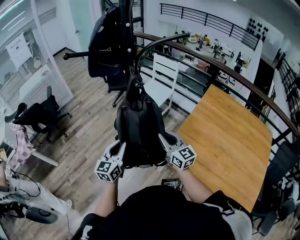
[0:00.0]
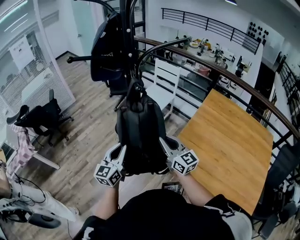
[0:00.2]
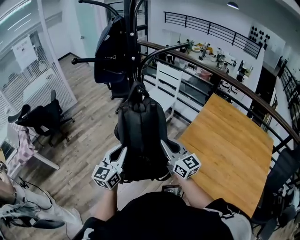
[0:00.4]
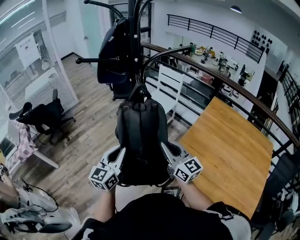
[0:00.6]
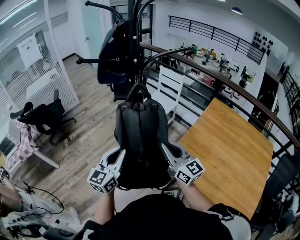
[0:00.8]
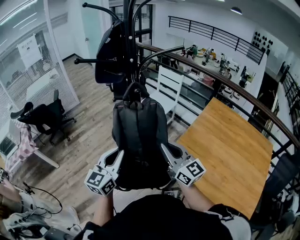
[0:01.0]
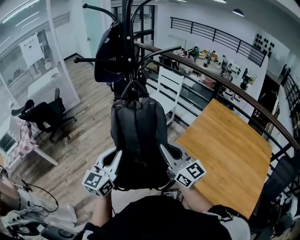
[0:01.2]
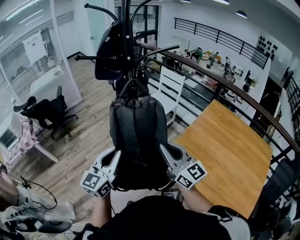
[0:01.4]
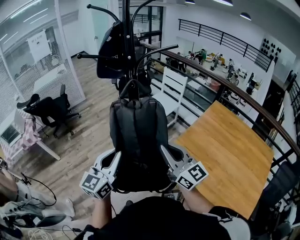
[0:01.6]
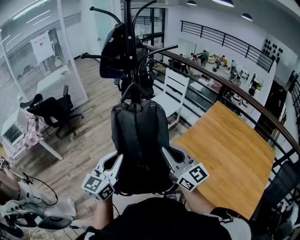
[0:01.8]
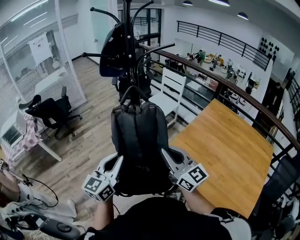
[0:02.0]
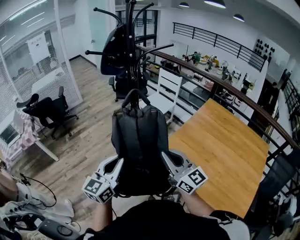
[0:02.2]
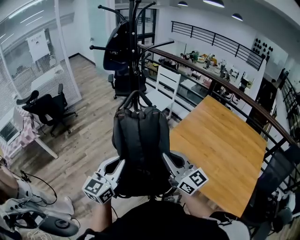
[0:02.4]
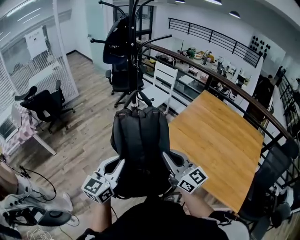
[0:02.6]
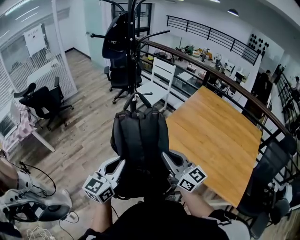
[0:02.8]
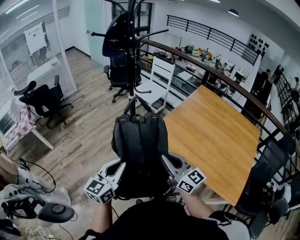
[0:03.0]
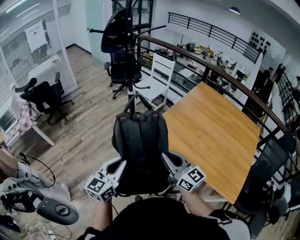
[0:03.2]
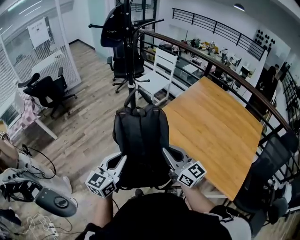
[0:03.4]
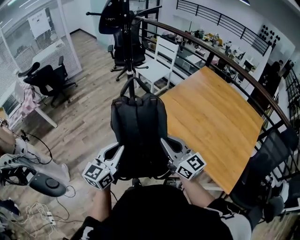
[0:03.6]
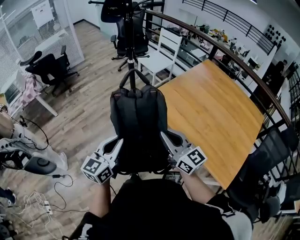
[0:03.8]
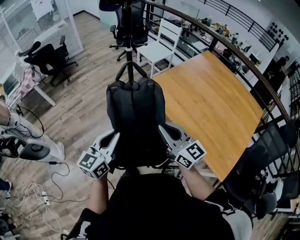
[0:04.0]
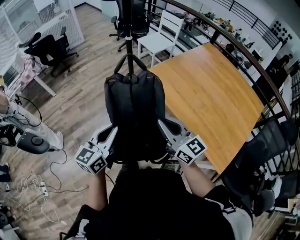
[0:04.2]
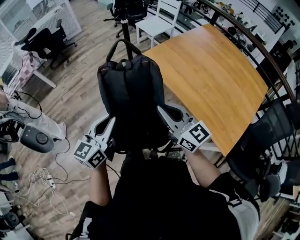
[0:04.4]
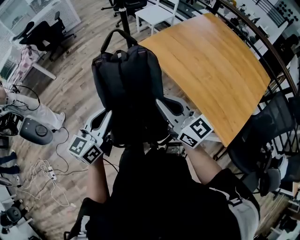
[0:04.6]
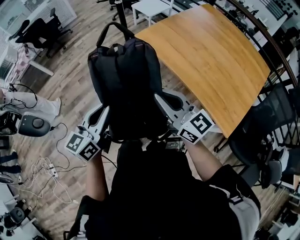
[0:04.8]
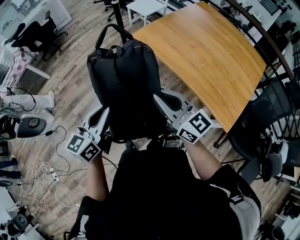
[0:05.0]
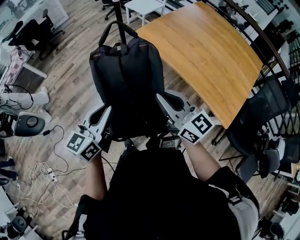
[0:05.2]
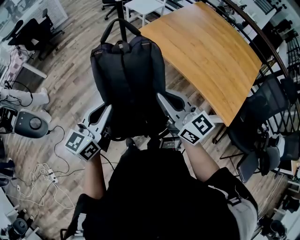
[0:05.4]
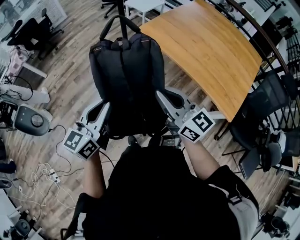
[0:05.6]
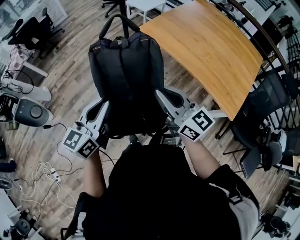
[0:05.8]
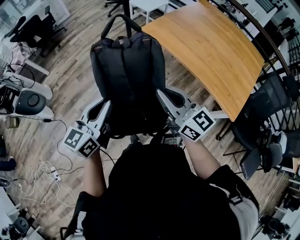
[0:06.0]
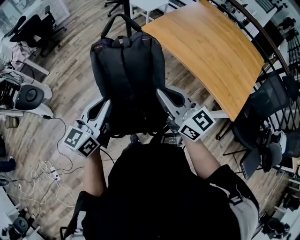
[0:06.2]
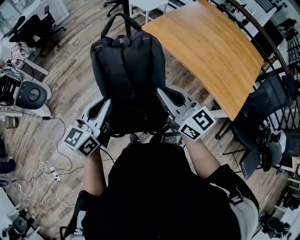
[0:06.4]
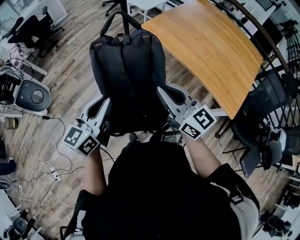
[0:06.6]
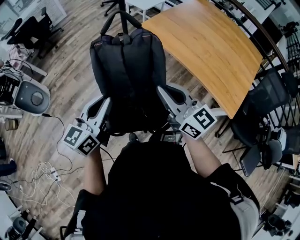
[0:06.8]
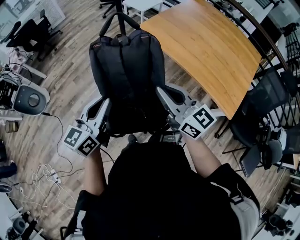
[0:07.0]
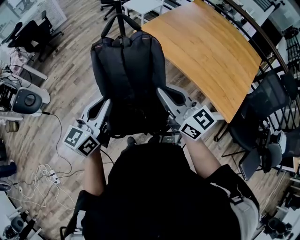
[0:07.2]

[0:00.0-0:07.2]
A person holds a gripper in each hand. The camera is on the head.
0:00.0 to 0:01.4: The grippers both shift upward and backward by approximately 15 cm.
0:01.4 to 0:02.8: Both grippers move backward, roughly 20 cm.
0:02.8 to 0:04.4: Both grippers move backward, some 20 cm.
0:04.4 to 0:05.8: The left gripper shifts roughly 10 cm to the left and backward, while the right gripper goes approximately 10 cm backward and to the left.
0:05.8 to 0:07.2: The grippers make only small movements.

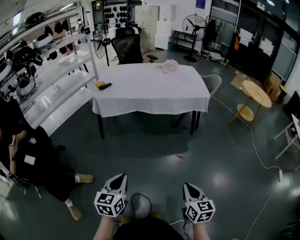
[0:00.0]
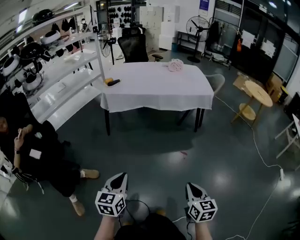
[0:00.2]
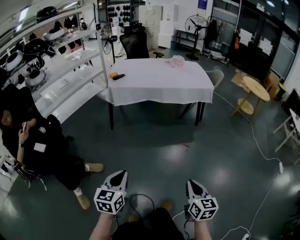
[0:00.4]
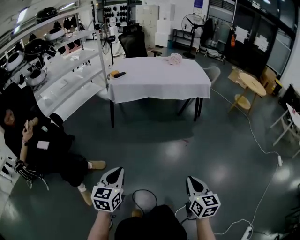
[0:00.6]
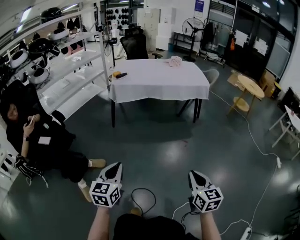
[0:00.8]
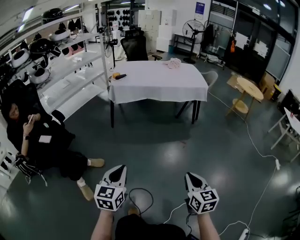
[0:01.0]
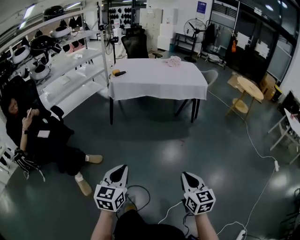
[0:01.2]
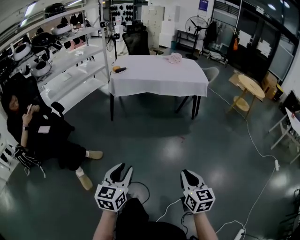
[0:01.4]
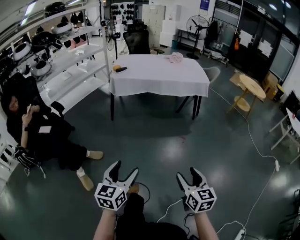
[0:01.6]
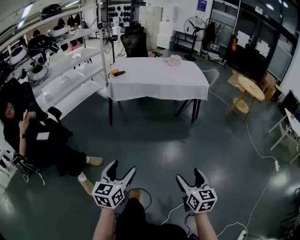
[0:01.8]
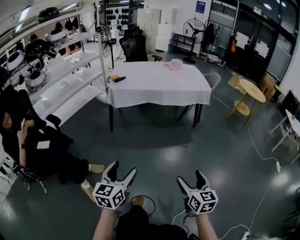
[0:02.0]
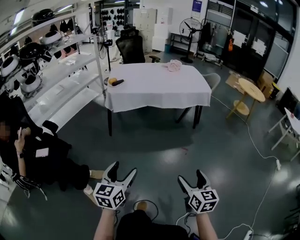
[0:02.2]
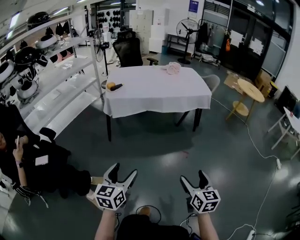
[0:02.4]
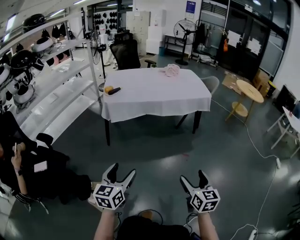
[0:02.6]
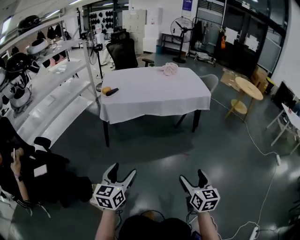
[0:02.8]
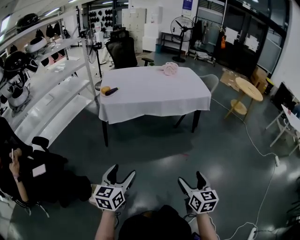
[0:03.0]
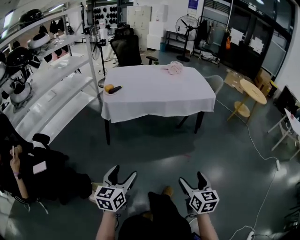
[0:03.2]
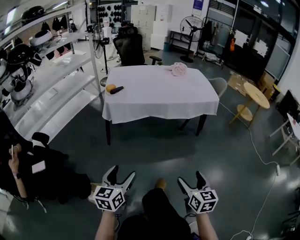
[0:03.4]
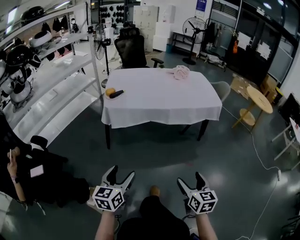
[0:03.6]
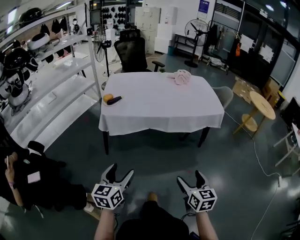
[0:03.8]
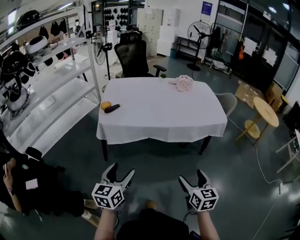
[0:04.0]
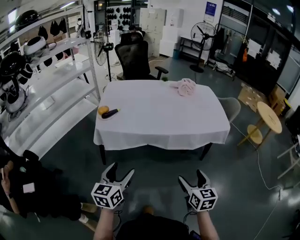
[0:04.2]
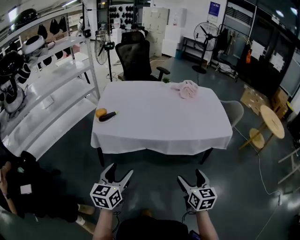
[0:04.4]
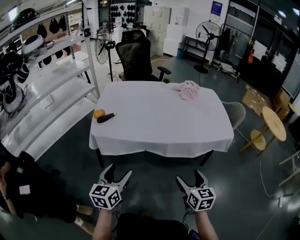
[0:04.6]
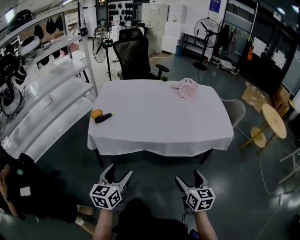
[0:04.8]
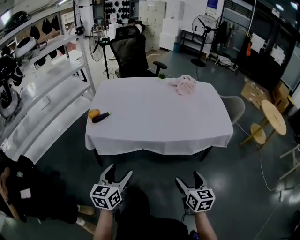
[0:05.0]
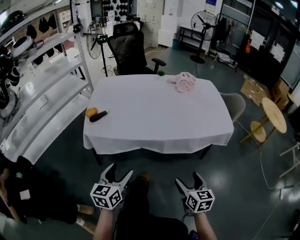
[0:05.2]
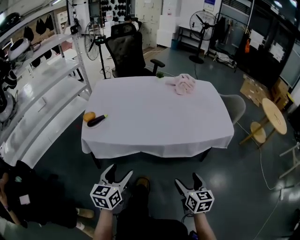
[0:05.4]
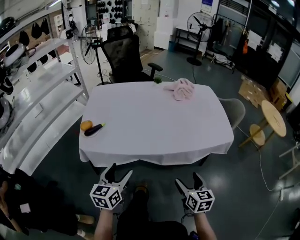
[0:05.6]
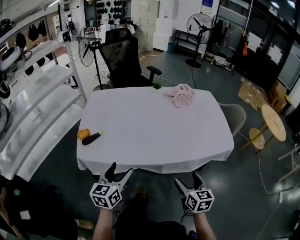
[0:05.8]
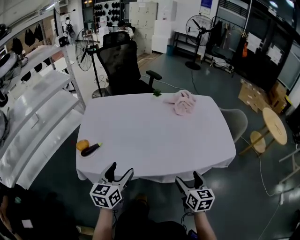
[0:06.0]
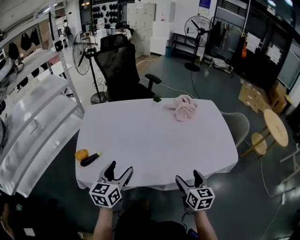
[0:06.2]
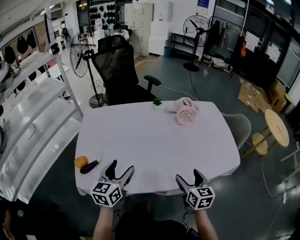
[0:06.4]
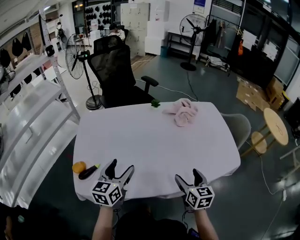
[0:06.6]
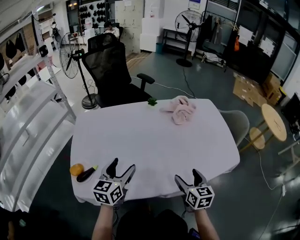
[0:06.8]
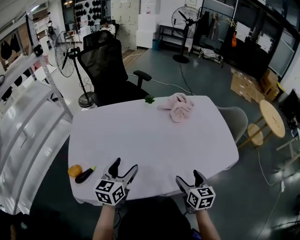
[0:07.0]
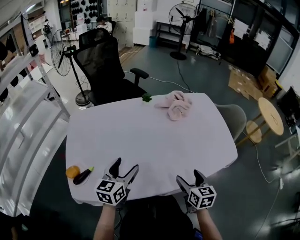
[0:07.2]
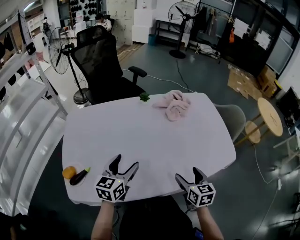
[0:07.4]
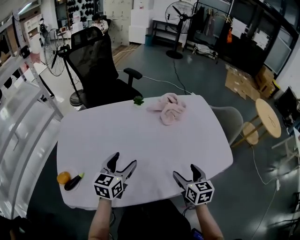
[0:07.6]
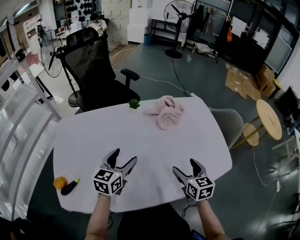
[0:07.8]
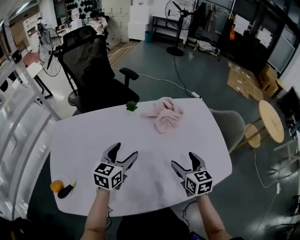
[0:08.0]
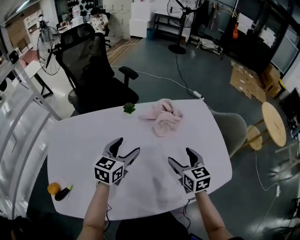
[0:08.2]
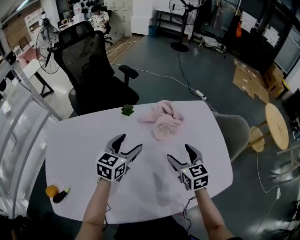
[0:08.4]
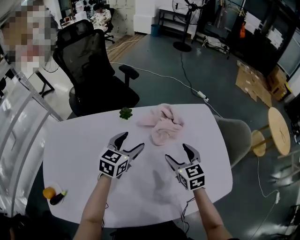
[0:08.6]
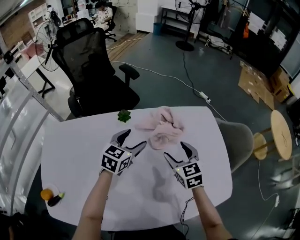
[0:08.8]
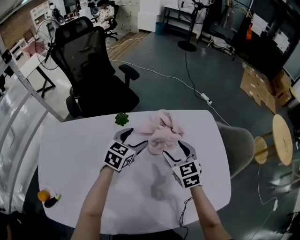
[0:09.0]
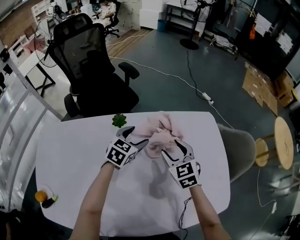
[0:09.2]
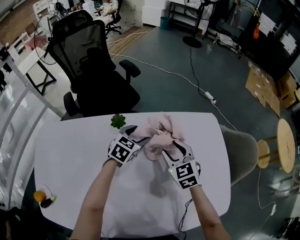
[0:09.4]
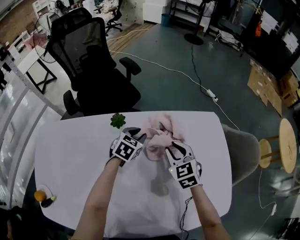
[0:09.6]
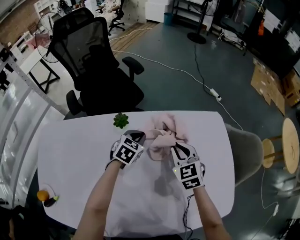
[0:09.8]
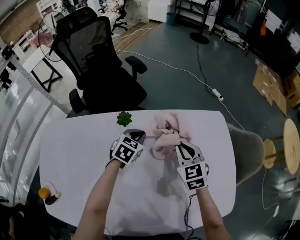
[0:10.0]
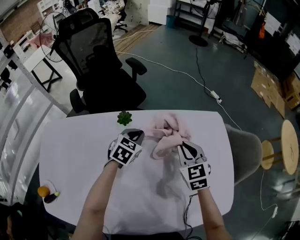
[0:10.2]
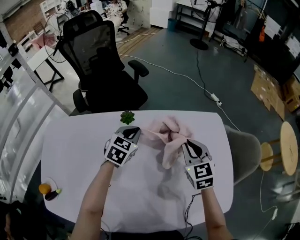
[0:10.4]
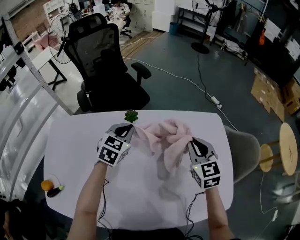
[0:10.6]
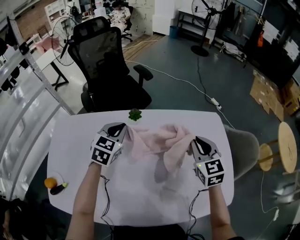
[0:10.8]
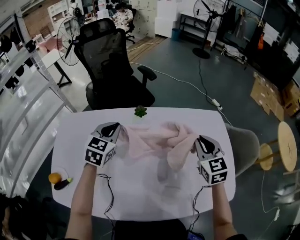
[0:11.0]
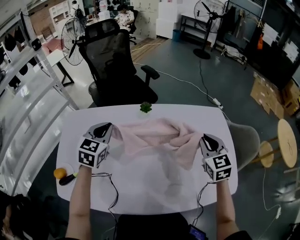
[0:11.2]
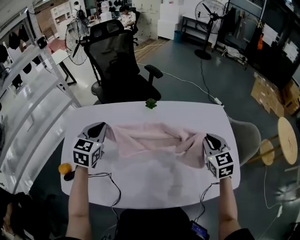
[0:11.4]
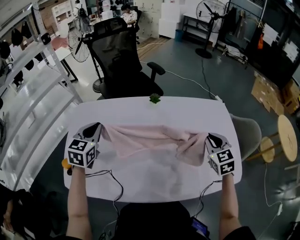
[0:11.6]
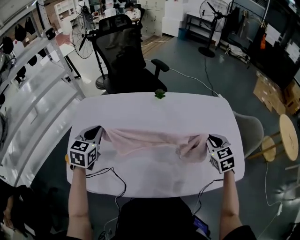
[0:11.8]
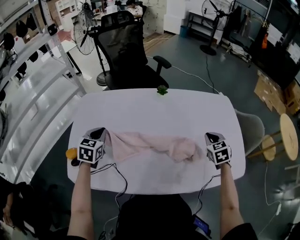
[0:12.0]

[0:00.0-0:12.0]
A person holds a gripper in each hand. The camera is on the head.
0:00.0 to 0:01.6: The left gripper travels backward by some 25 cm, and opens up, while the right gripper heads backward and to the left, covering approximately 25 cm, and opens.
0:01.6 to 0:03.0: Both grippers travel together forward and to the left, about 30 cm.
0:03.0 to 0:04.4: Both grippers move forward, roughly 40 cm.
0:04.4 to 0:06.0: Both grippers move forward, about 25 cm.
0:06.0 to 0:07.6: The two grippers go about 20 cm forward.
0:07.6 to 0:09.0: The right gripper moves forward, some 30 cm, and swivels roughly 30 degrees; the left gripper travels forward and to the right by approximately 35 cm.
0:09.0 to 0:10.4: The right gripper moves approximately 5 cm, and closes. Meanwhile the left gripper reaches approximately 10 cm downward, then returns, and closes its fingers.
0:10.4 to 0:12.0: The left gripper is displaced to the left and backward by approximately 40 cm, and turns by roughly 20 degrees. Meanwhile the right gripper heads backward, covering approximately 15 cm.

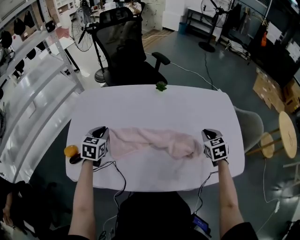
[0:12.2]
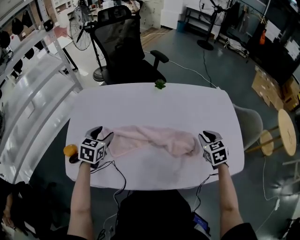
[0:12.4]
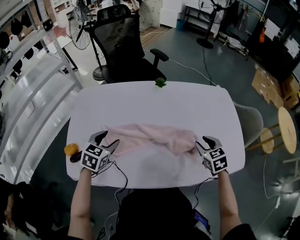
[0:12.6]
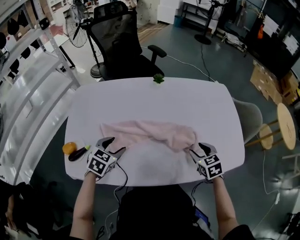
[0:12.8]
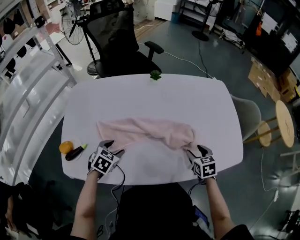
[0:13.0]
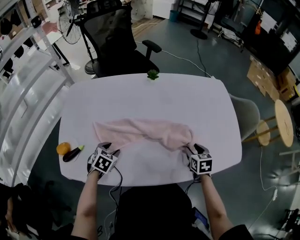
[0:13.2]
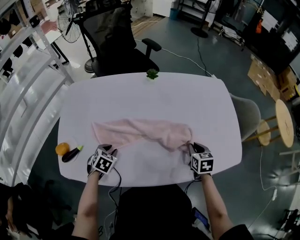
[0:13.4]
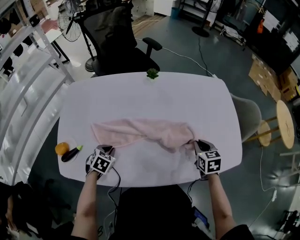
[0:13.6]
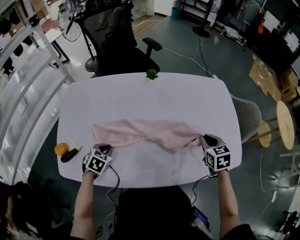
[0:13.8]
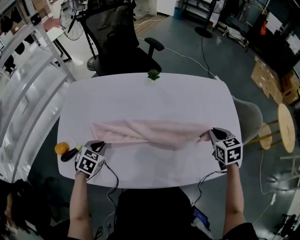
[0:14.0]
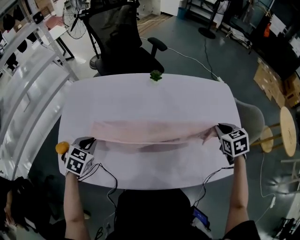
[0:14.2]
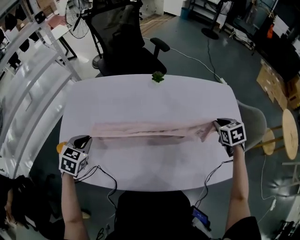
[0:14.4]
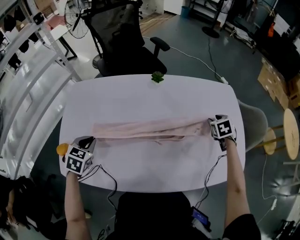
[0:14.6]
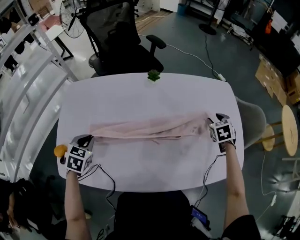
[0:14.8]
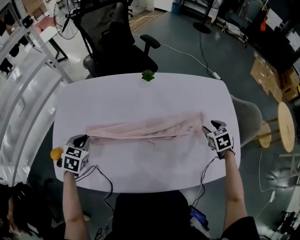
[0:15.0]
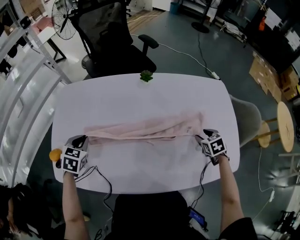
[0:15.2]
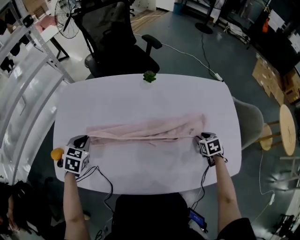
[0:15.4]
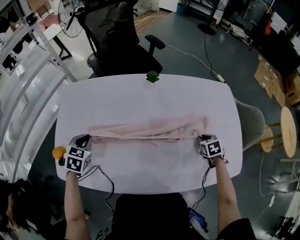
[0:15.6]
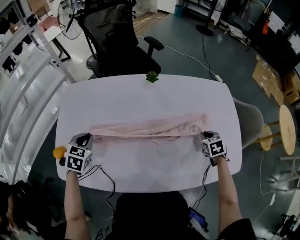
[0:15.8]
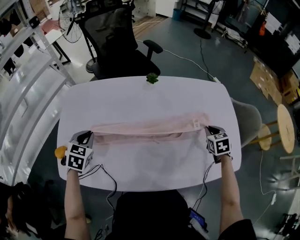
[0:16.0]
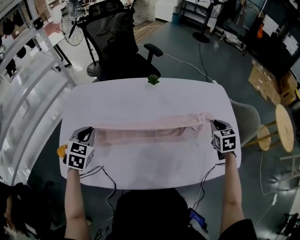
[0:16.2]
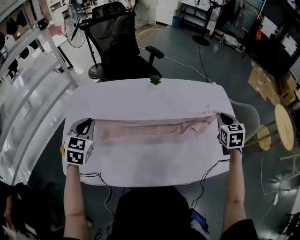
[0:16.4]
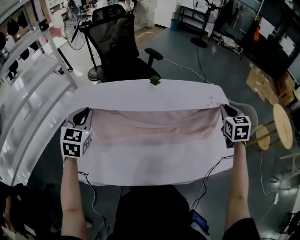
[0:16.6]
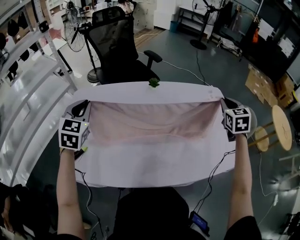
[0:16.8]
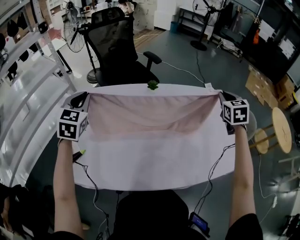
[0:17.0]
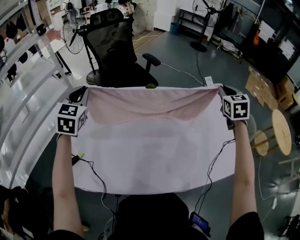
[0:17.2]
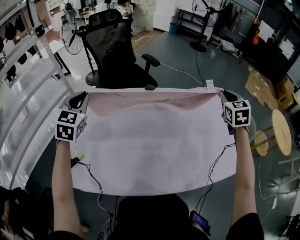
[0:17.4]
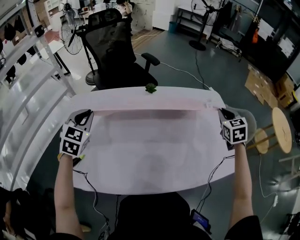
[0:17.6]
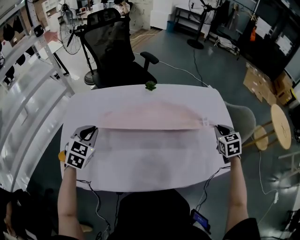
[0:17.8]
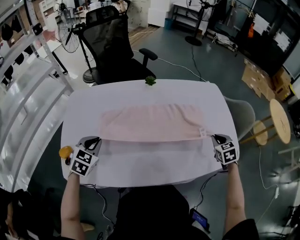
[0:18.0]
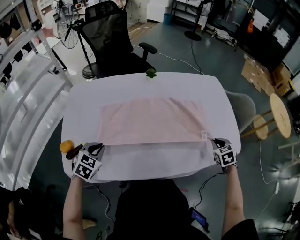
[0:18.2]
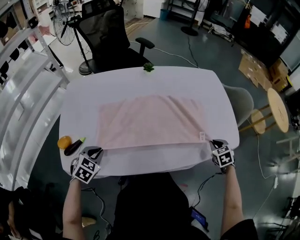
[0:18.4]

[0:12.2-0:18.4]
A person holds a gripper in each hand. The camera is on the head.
0:12.2 to 0:13.8: The right gripper heads backward, covering some 5 cm, and opens and closes again. The left gripper heads downward, backward and to the right, covering about 15 cm, rotates some 30 degrees, and opens, then closes once more.
0:13.8 to 0:15.4: The left gripper is displaced upward, to the left and forward by about 10 cm; the right gripper travels downward and forward by about 15 cm.
0:15.4 to 0:16.8: Both grippers move upward, some 25 cm. The left gripper changes its angle by roughly 30 degrees. Meanwhile the right gripper points its fingers roughly 30 degrees further upward.
0:16.8 to 0:18.4: Both grippers travel together downward and backward, approximately 30 cm. The left gripper swivels roughly 40 degrees. The right gripper rotates approximately 30 degrees.
